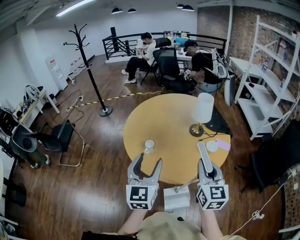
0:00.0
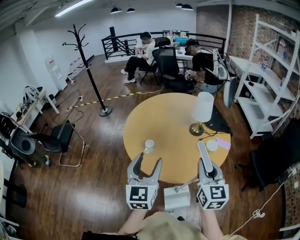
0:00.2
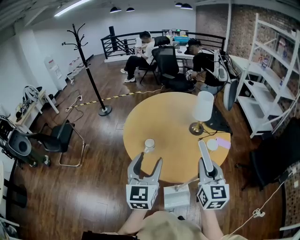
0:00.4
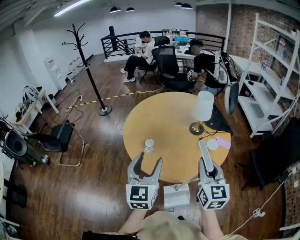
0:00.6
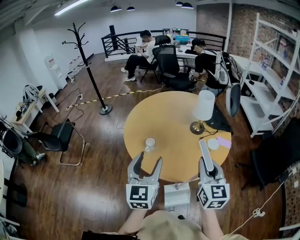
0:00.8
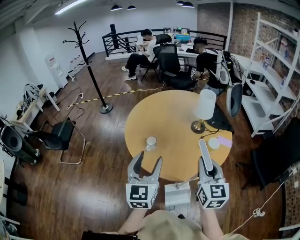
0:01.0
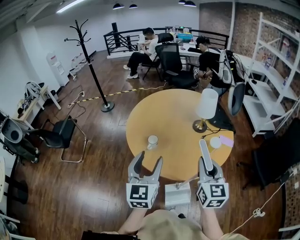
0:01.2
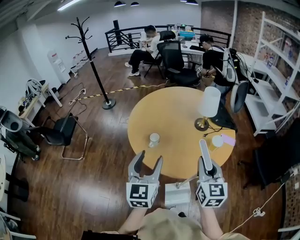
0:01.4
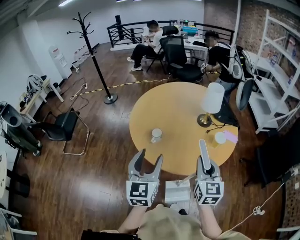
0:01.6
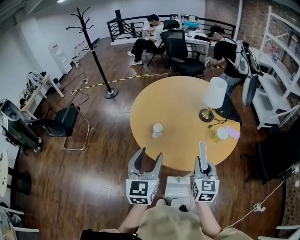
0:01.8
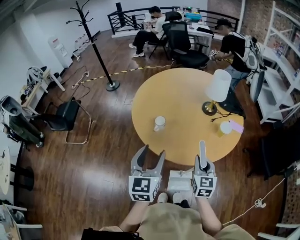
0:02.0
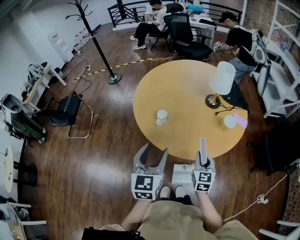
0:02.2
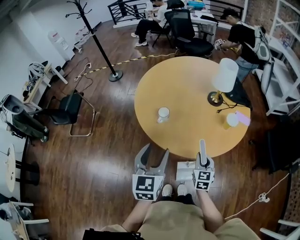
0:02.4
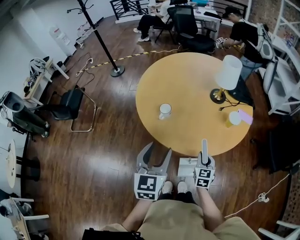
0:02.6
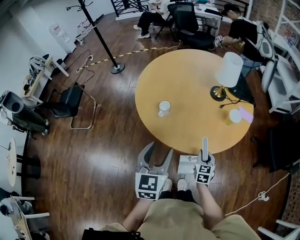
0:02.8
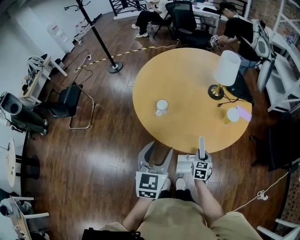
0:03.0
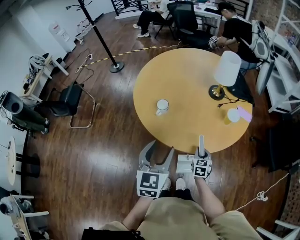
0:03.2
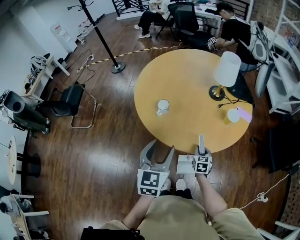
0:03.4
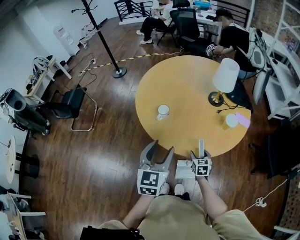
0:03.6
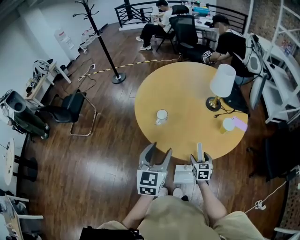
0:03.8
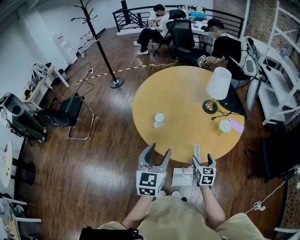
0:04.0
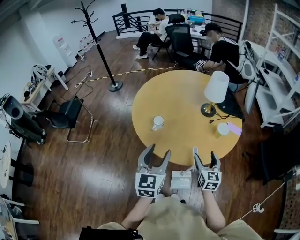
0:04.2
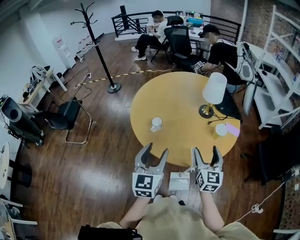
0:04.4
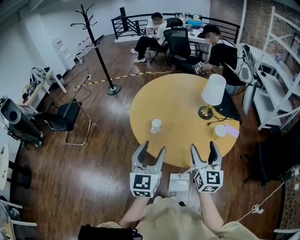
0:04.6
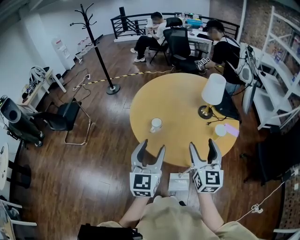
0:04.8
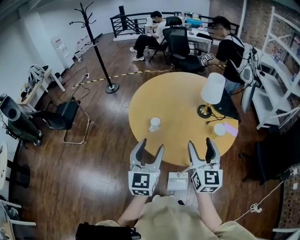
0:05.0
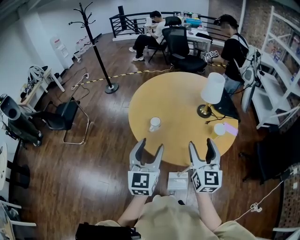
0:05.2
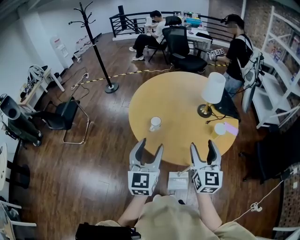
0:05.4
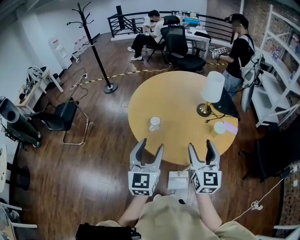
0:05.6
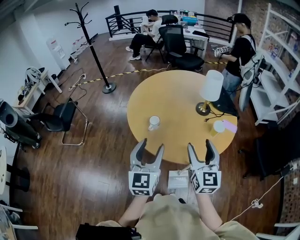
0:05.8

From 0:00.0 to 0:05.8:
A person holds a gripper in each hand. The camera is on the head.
From 0:00.0 to 0:01.4: The grippers stay close to where they were, moving slightly.
From 0:01.4 to 0:02.8: The left gripper heads downward, covering roughly 10 cm. The right gripper shifts roughly 30 cm downward, and rotates about 20 degrees.
From 0:02.8 to 0:04.4: The right gripper moves upward, approximately 20 cm, rotates approximately 30 degrees, and opens up.
From 0:04.4 to 0:05.8: The right gripper heads upward, covering roughly 5 cm.

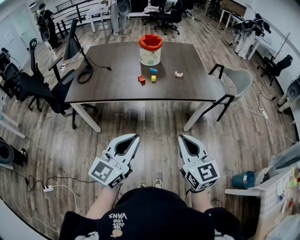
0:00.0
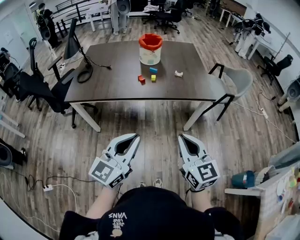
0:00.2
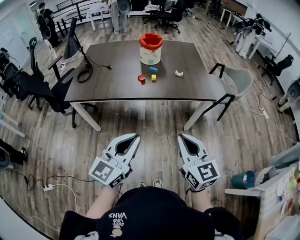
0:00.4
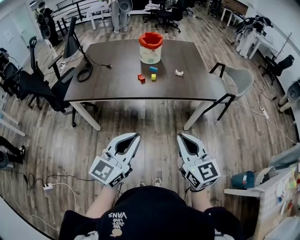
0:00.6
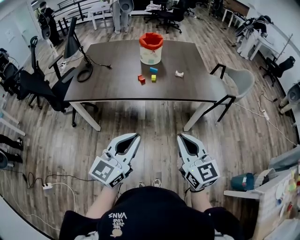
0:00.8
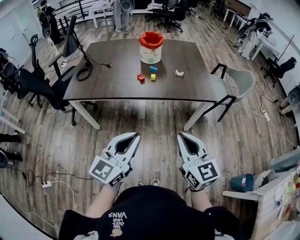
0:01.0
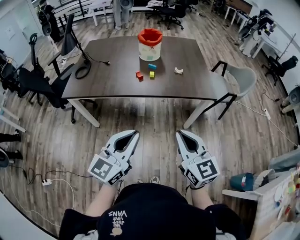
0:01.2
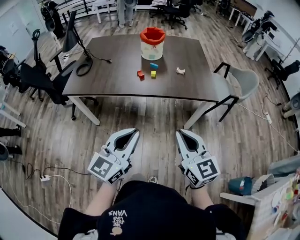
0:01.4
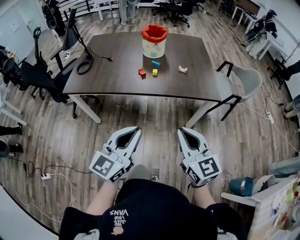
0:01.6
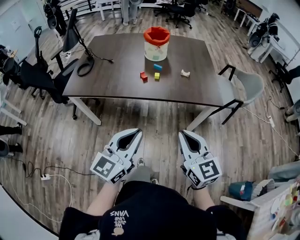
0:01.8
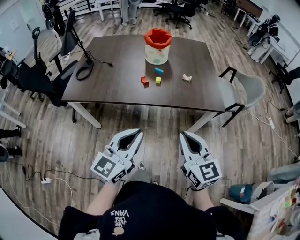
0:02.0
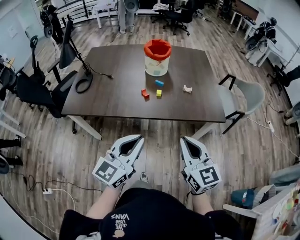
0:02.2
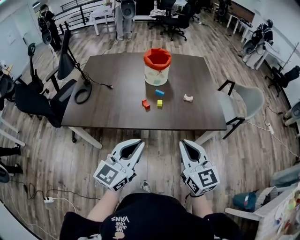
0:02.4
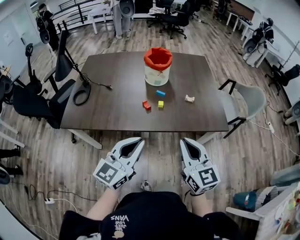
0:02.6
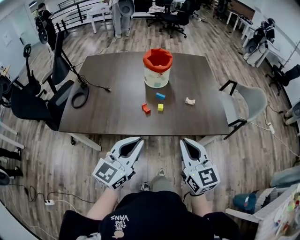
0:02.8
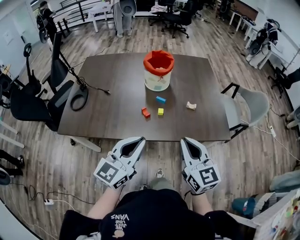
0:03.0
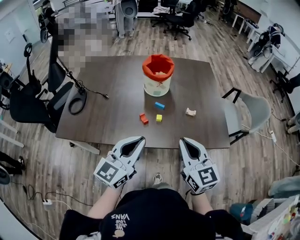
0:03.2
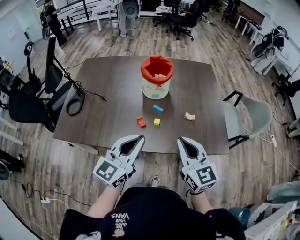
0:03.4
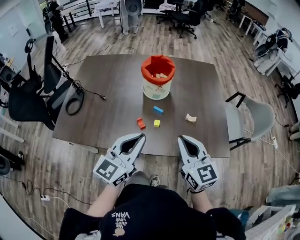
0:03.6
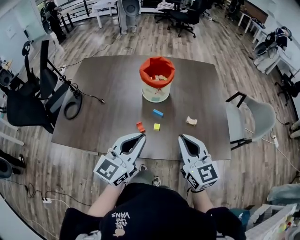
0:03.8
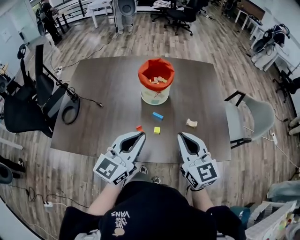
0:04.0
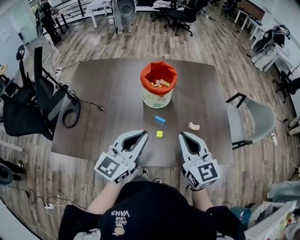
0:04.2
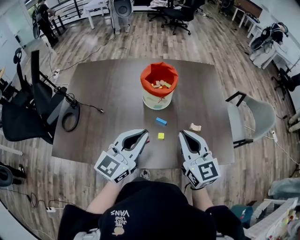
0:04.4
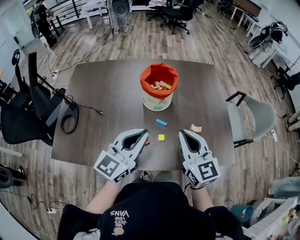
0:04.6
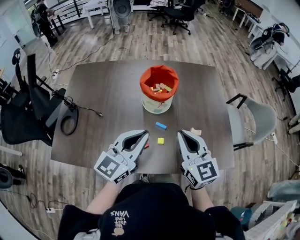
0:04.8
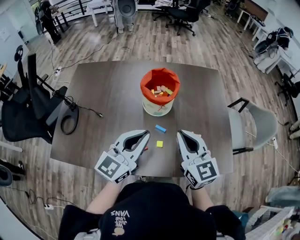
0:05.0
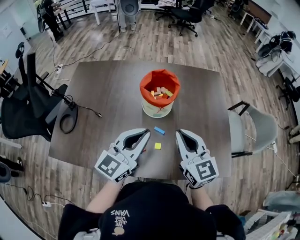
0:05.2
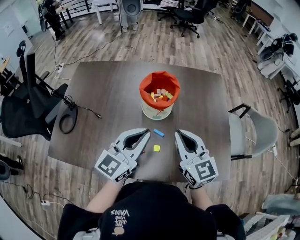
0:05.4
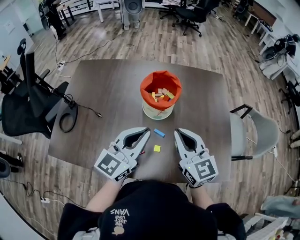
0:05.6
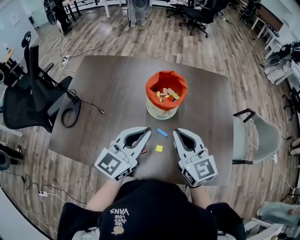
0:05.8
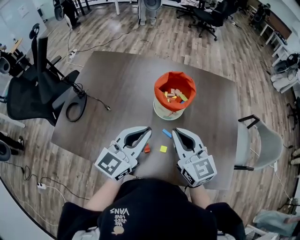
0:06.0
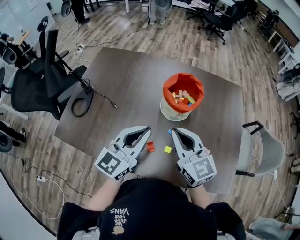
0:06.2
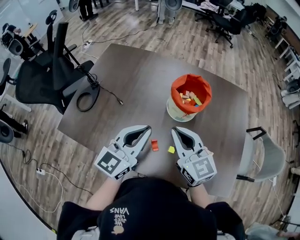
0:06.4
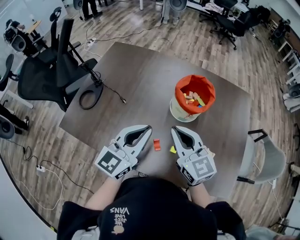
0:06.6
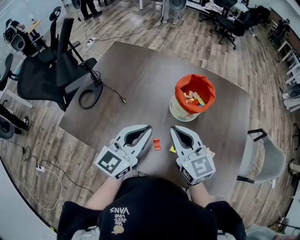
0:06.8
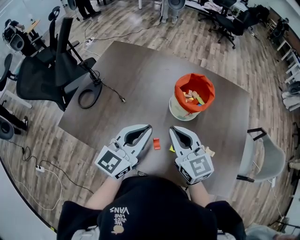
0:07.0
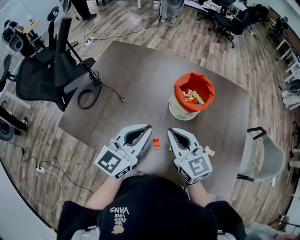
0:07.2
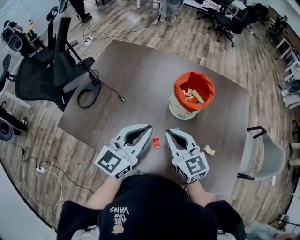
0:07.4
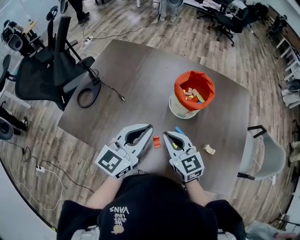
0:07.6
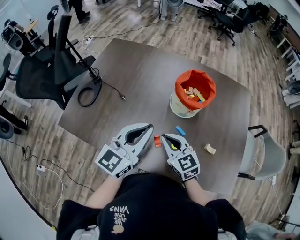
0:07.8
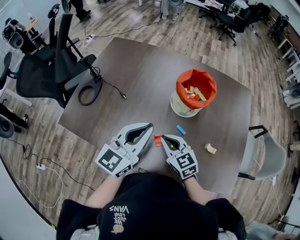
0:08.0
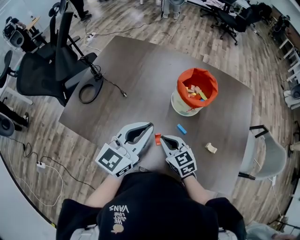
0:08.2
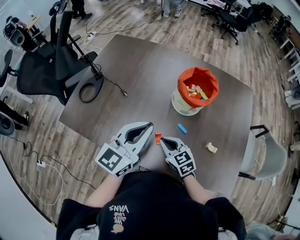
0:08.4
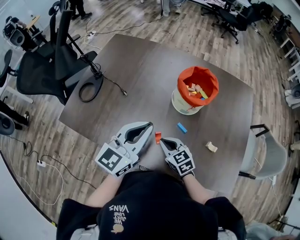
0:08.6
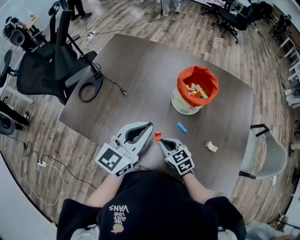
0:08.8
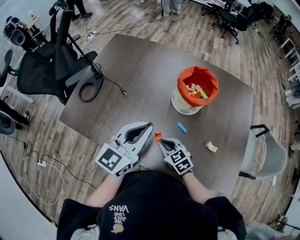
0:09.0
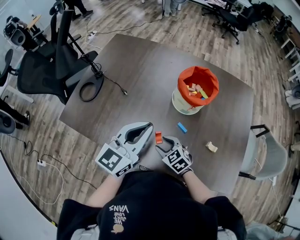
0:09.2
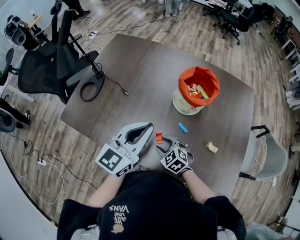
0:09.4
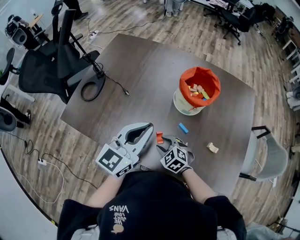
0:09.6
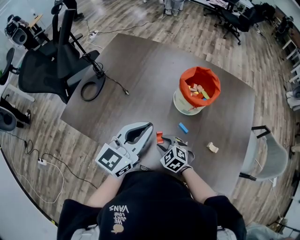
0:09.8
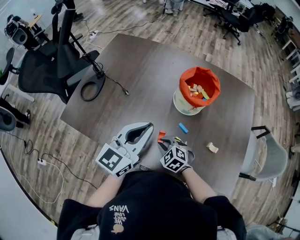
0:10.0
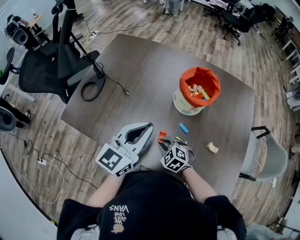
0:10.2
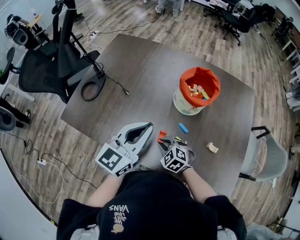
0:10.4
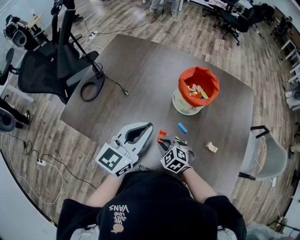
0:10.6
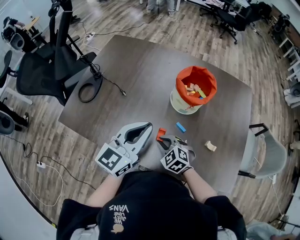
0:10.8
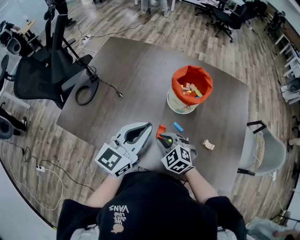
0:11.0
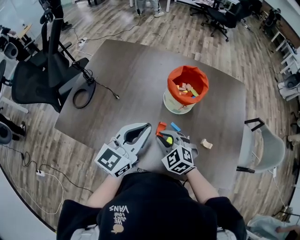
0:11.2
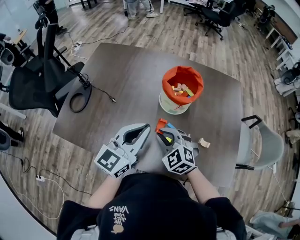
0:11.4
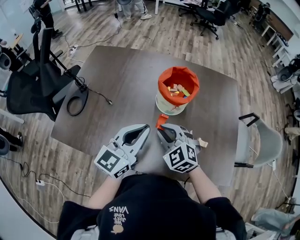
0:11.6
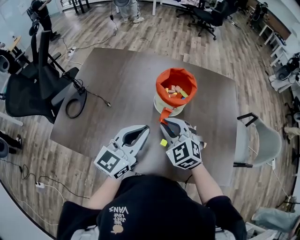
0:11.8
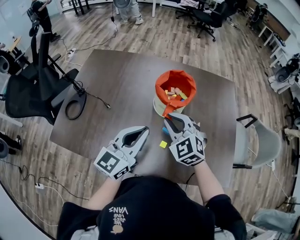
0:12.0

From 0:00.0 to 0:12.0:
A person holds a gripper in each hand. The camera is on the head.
From 0:00.0 to 0:01.6: The two grippers go roughly 5 cm forward.
From 0:01.6 to 0:03.0: Both grippers move forward, about 25 cm.
From 0:03.0 to 0:04.4: The grippers both shift forward by some 20 cm.
From 0:04.4 to 0:06.0: The left gripper moves forward, approximately 10 cm; the right gripper heads forward and to the left, covering about 10 cm.
From 0:06.0 to 0:07.6: The left gripper travels to the left by some 5 cm; the right gripper shifts some 10 cm downward and to the left.
From 0:07.6 to 0:09.0: The right gripper is displaced downward by approximately 15 cm, and changes its angle by roughly 30 degrees.
From 0:09.0 to 0:10.4: The right gripper turns by about 30 degrees, and opens, then closes once more.
From 0:10.4 to 0:12.0: The left gripper moves some 5 cm. Meanwhile the right gripper travels upward and forward by approximately 25 cm, and changes its angle by some 30 degrees.

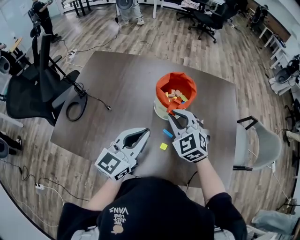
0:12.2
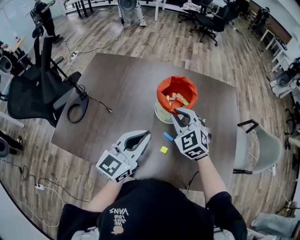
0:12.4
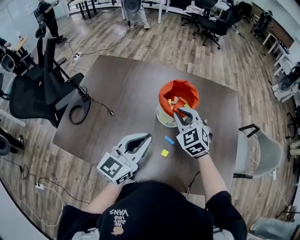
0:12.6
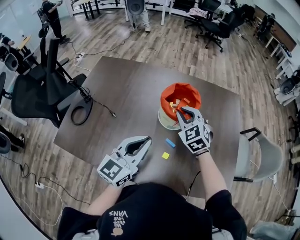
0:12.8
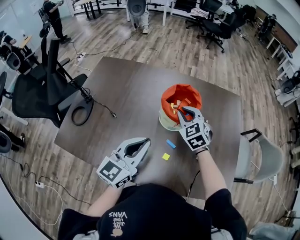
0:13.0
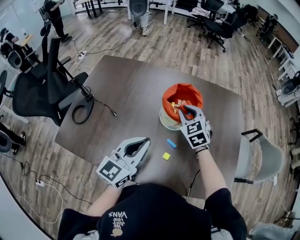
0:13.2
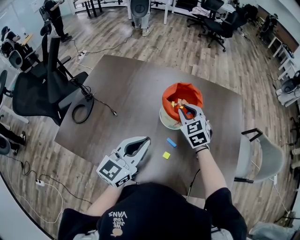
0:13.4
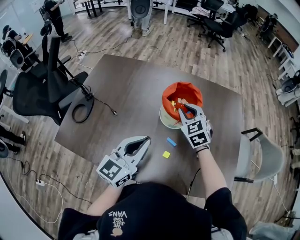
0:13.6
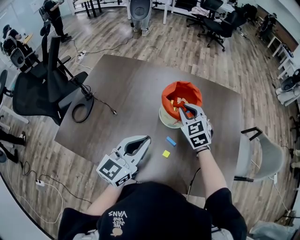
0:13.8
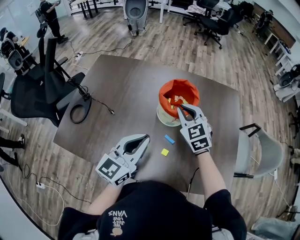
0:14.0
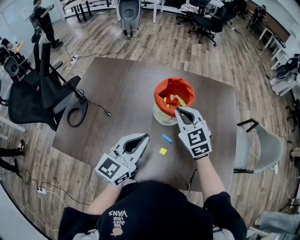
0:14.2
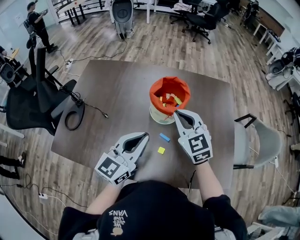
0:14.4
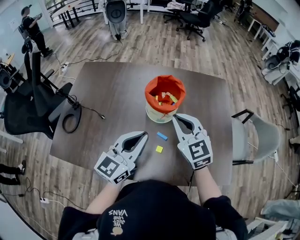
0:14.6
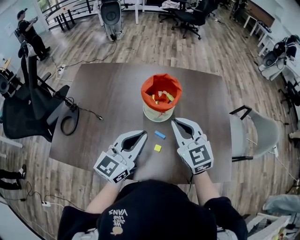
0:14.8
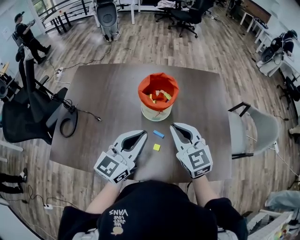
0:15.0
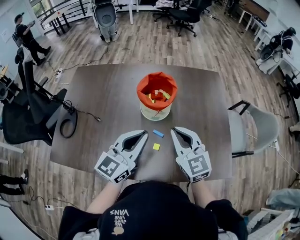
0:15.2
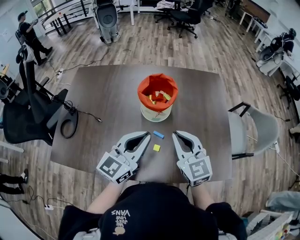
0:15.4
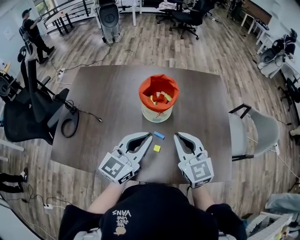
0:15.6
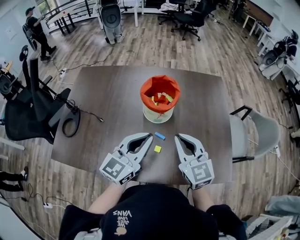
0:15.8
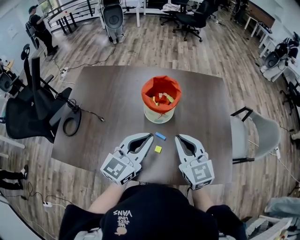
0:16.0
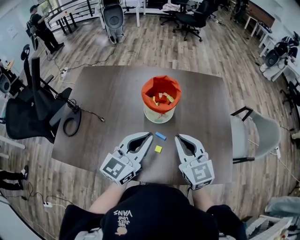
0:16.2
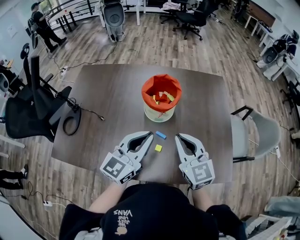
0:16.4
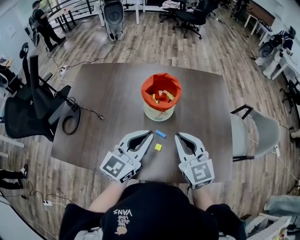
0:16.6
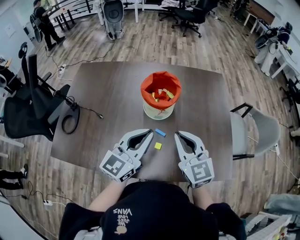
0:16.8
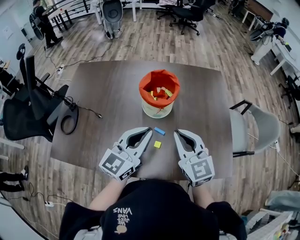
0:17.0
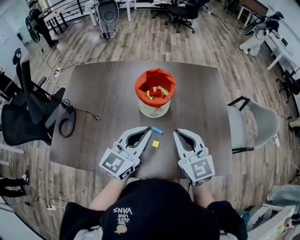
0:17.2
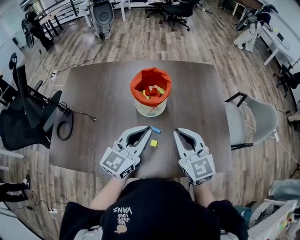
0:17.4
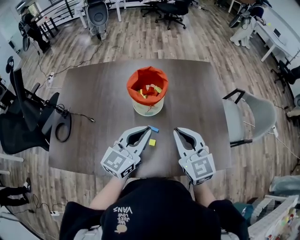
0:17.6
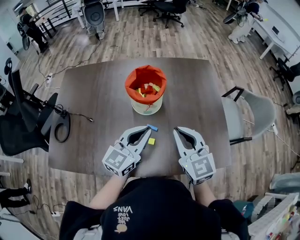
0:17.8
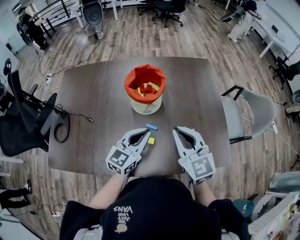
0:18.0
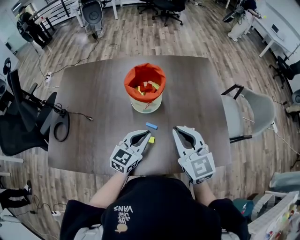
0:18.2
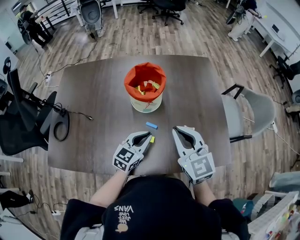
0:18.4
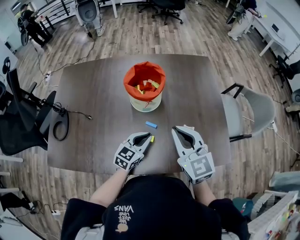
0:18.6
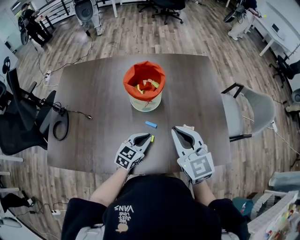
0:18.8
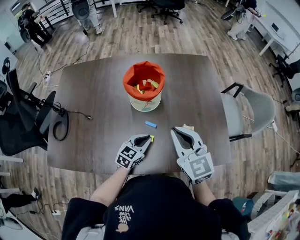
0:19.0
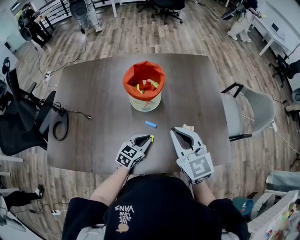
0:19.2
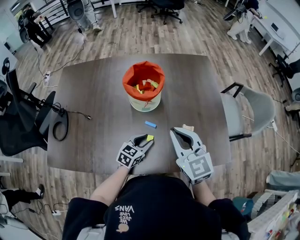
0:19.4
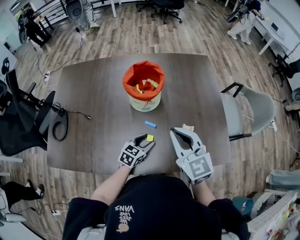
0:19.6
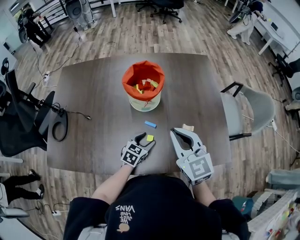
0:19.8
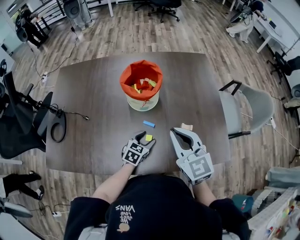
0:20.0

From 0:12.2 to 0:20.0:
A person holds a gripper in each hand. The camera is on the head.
From 0:12.2 to 0:13.8: The right gripper travels forward by about 10 cm.
From 0:13.8 to 0:15.4: The left gripper shifts about 5 cm to the right; the right gripper travels backward by approximately 15 cm, and rotates approximately 30 degrees.
From 0:15.4 to 0:16.8: Neither gripper changes place.
From 0:16.8 to 0:18.4: The left gripper travels downward by roughly 15 cm, and rotates roughly 20 degrees.
From 0:18.4 to 0:20.0: The left gripper travels downward by some 10 cm, rotates roughly 20 degrees, and opens up.
